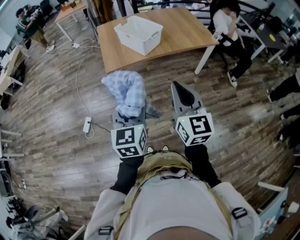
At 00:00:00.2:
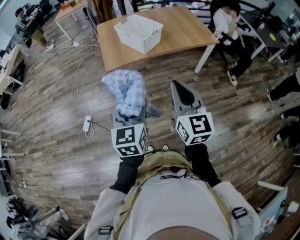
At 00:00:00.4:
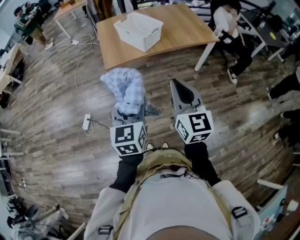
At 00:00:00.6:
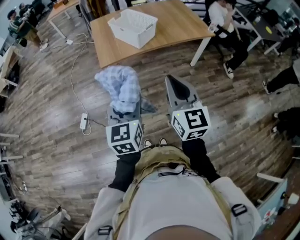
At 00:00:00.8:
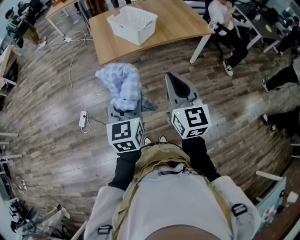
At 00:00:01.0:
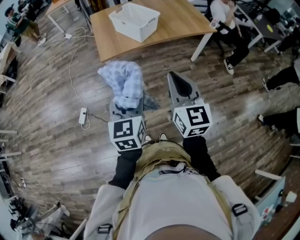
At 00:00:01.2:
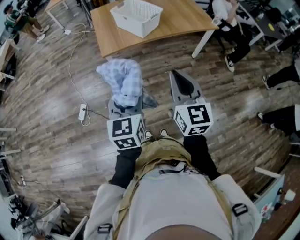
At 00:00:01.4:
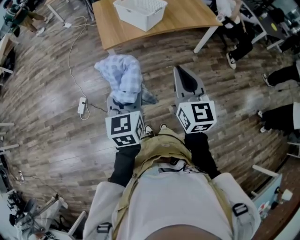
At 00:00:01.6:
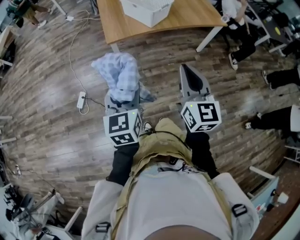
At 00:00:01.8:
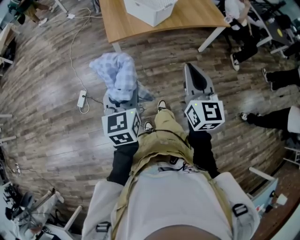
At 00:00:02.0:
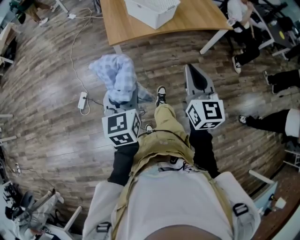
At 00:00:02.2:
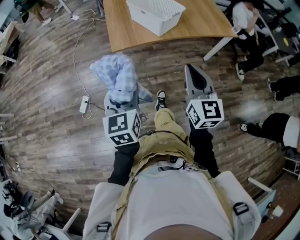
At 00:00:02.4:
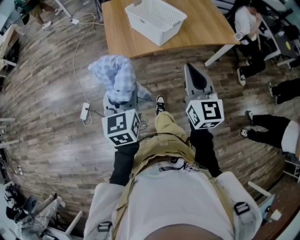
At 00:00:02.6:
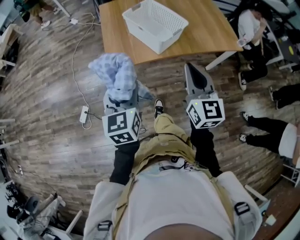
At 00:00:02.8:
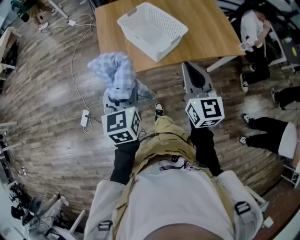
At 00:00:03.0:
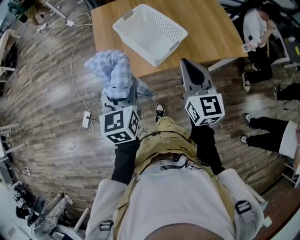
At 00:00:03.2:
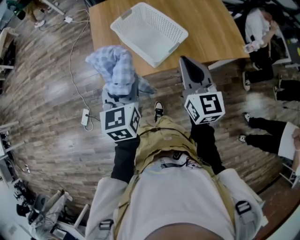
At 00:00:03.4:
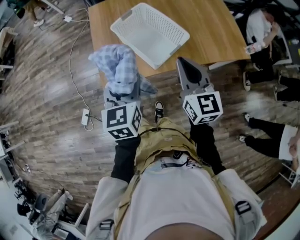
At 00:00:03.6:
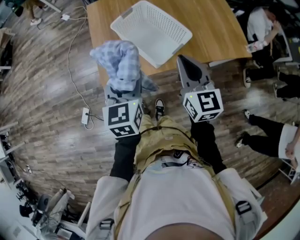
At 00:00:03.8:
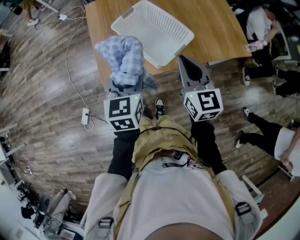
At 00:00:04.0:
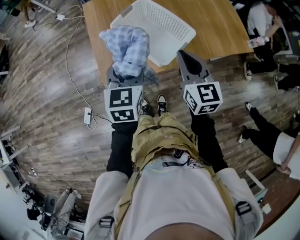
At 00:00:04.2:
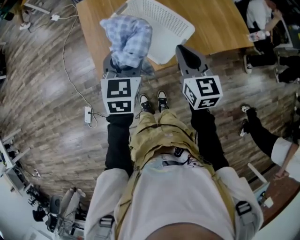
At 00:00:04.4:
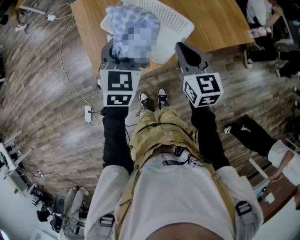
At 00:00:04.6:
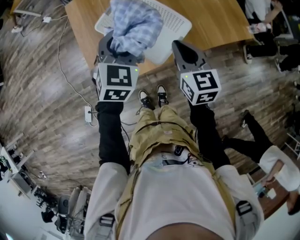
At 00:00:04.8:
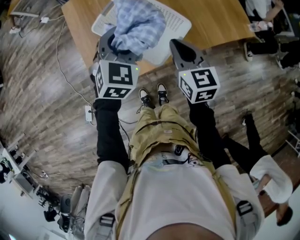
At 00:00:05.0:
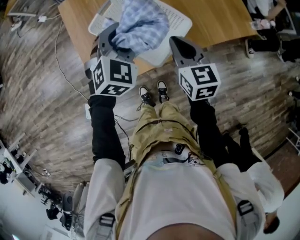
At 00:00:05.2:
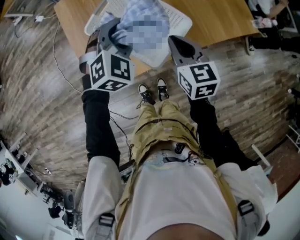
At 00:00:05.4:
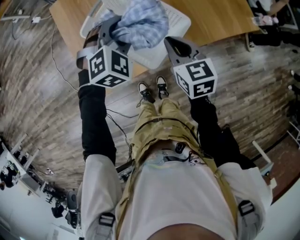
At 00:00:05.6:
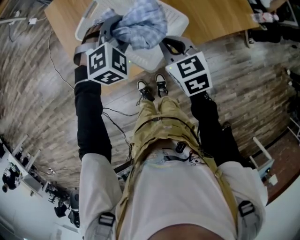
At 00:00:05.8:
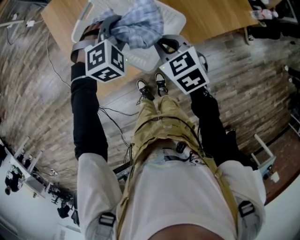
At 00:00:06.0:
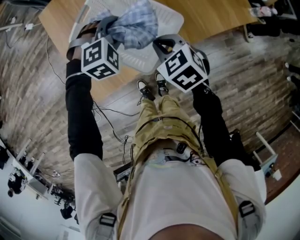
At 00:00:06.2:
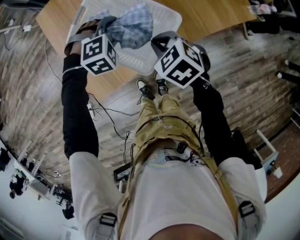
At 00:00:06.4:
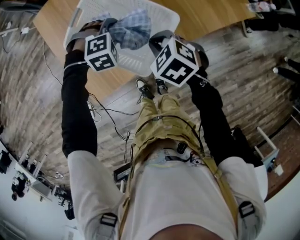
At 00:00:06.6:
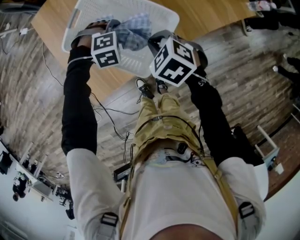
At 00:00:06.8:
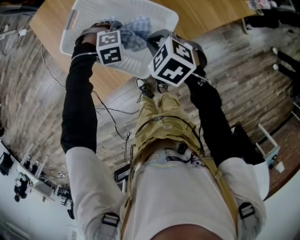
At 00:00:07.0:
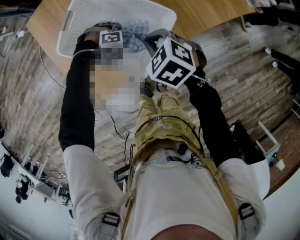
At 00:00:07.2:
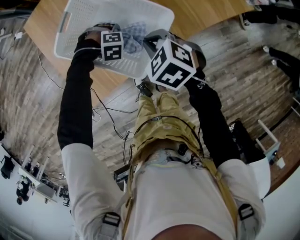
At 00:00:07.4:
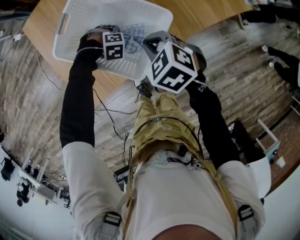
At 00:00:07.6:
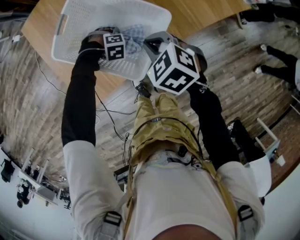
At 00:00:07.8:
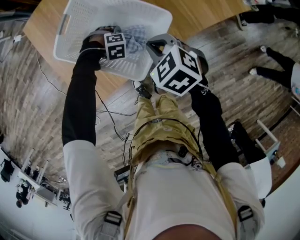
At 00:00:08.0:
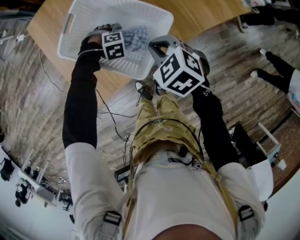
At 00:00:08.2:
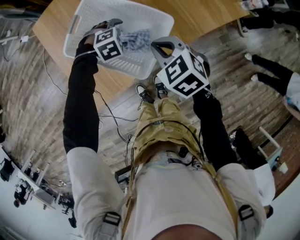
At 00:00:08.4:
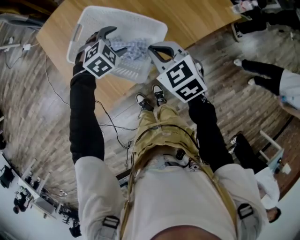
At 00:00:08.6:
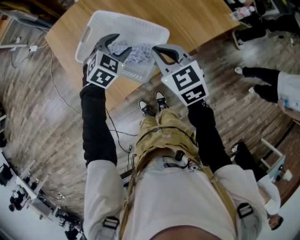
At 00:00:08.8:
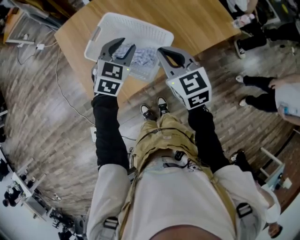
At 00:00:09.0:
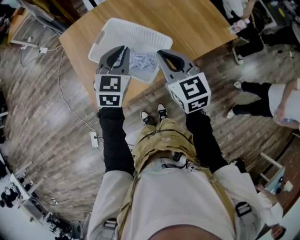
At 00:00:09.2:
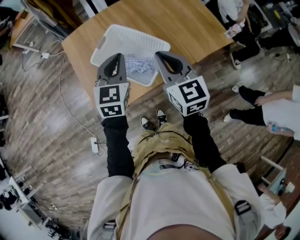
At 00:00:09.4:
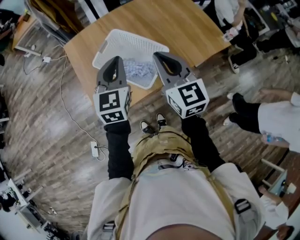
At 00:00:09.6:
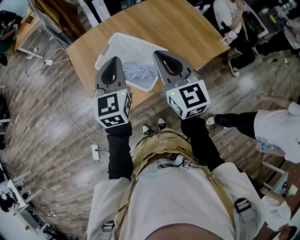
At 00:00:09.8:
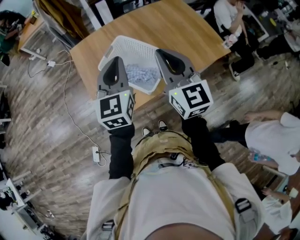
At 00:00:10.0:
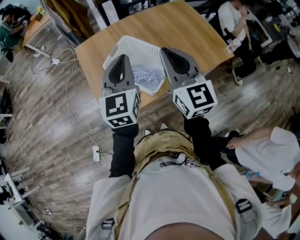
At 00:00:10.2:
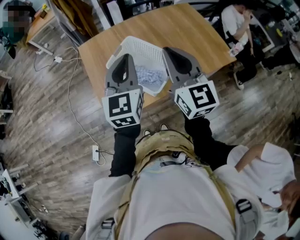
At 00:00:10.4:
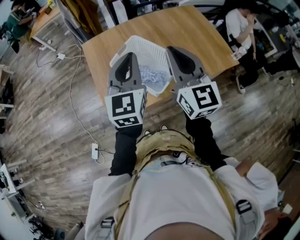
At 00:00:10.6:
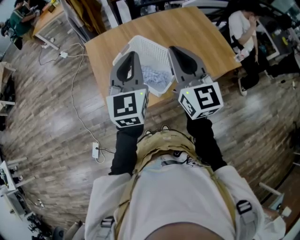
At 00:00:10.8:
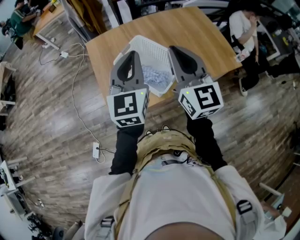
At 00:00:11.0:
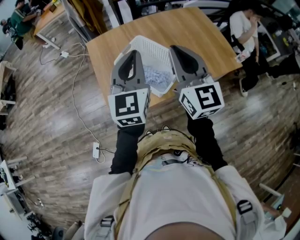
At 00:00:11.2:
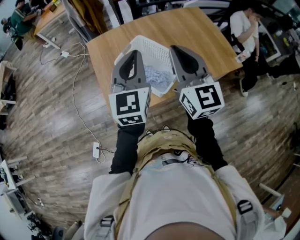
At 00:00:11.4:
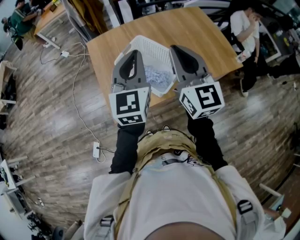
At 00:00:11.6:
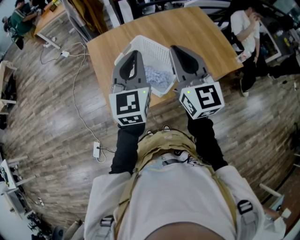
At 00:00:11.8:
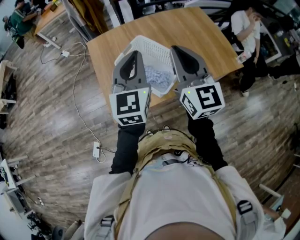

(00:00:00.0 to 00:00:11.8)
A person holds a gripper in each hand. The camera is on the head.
00:00:00.0 - 00:00:01.4: The right gripper moves roughly 5 cm; the left gripper is displaced to the left by some 5 cm.
00:00:01.4 - 00:00:03.0: The grippers both shift forward by roughly 40 cm.
00:00:03.0 - 00:00:04.4: The right gripper is displaced forward and downward by approximately 15 cm; the left gripper travels forward by approximately 20 cm, and turns by roughly 30 degrees.
00:00:04.4 - 00:00:06.0: The left gripper is displaced downward and forward by approximately 20 cm, and rotates around the line of its fingers by some 50 degrees, clockwise from behind. Meanwhile the right gripper is displaced downward by some 10 cm, and angles its fingers downward, by approximately 30 degrees.
00:00:06.0 - 00:00:07.4: The left gripper goes roughly 20 cm downward, and points its fingers approximately 30 degrees further downward.
00:00:07.4 - 00:00:08.8: The right gripper shifts some 15 cm upward, and angles its fingers upward, by about 30 degrees. Meanwhile the left gripper travels upward by roughly 30 cm, angles its fingers upward, by some 50 degrees, and opens and closes again.
00:00:08.8 - 00:00:10.4: The left gripper moves upward and backward, about 20 cm, angles its fingers upward, by approximately 30 degrees, and closes its fingers. Meanwhile the right gripper goes approximately 20 cm upward, and rotates about 30 degrees.
00:00:10.4 - 00:00:11.8: Both grippers stay about where they are.

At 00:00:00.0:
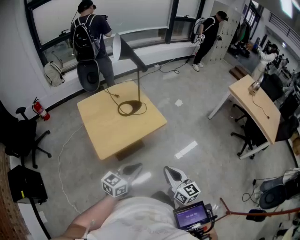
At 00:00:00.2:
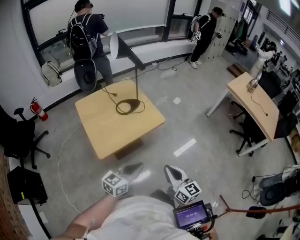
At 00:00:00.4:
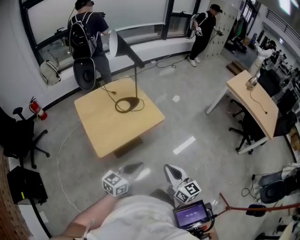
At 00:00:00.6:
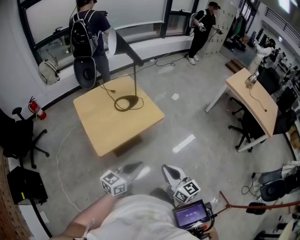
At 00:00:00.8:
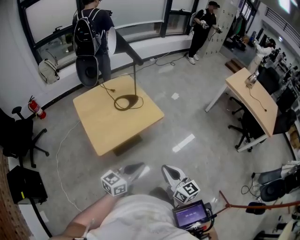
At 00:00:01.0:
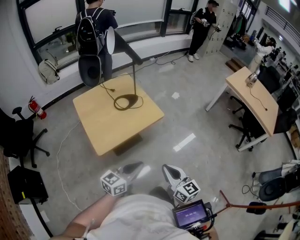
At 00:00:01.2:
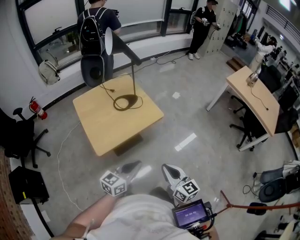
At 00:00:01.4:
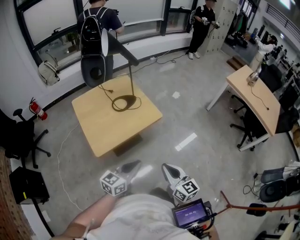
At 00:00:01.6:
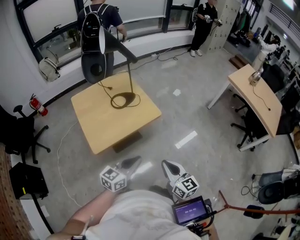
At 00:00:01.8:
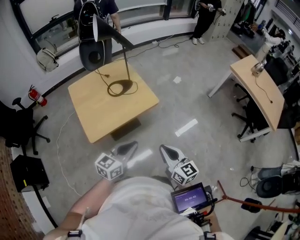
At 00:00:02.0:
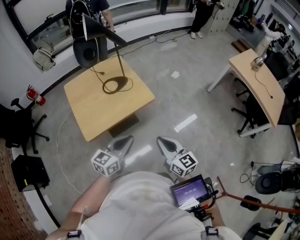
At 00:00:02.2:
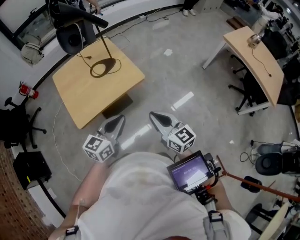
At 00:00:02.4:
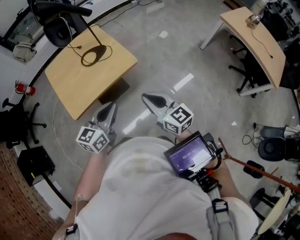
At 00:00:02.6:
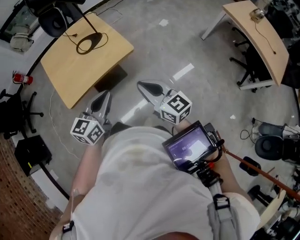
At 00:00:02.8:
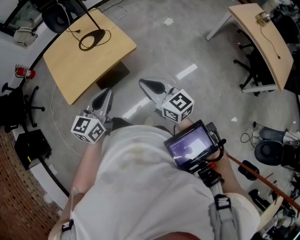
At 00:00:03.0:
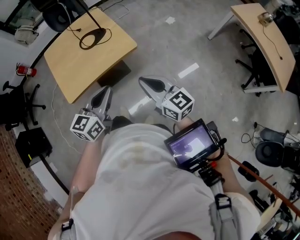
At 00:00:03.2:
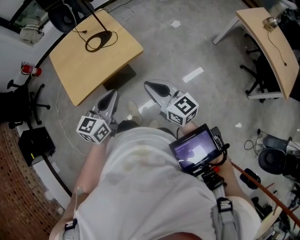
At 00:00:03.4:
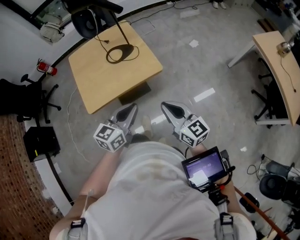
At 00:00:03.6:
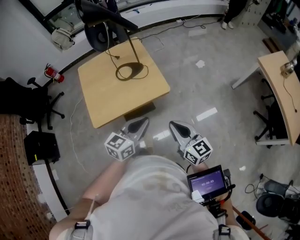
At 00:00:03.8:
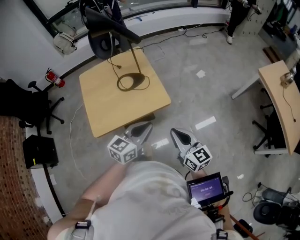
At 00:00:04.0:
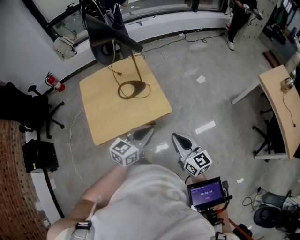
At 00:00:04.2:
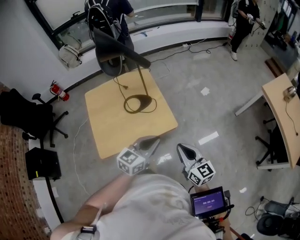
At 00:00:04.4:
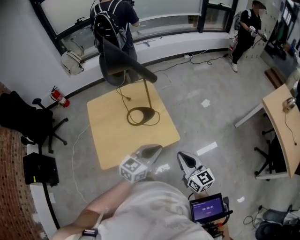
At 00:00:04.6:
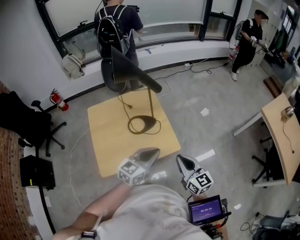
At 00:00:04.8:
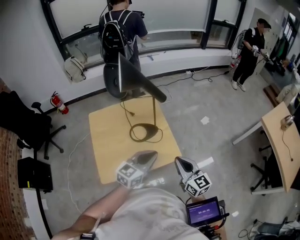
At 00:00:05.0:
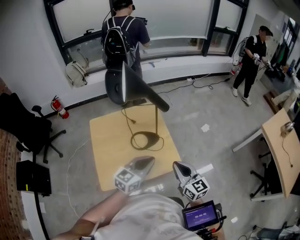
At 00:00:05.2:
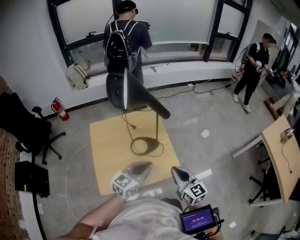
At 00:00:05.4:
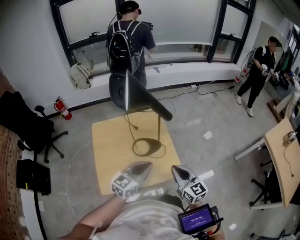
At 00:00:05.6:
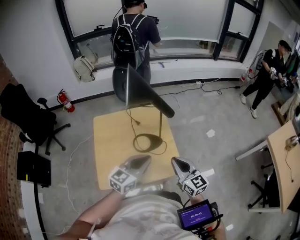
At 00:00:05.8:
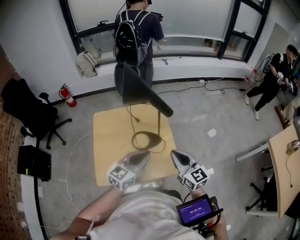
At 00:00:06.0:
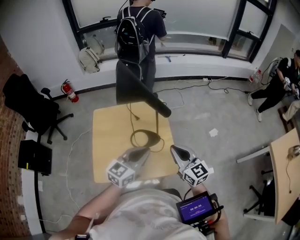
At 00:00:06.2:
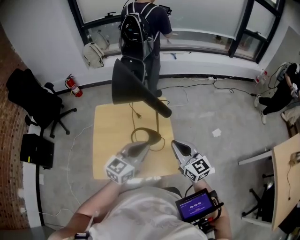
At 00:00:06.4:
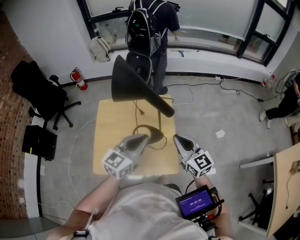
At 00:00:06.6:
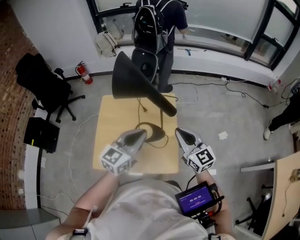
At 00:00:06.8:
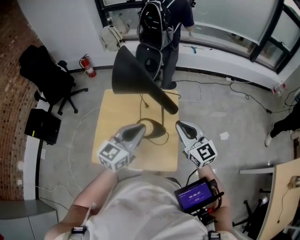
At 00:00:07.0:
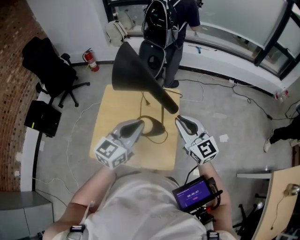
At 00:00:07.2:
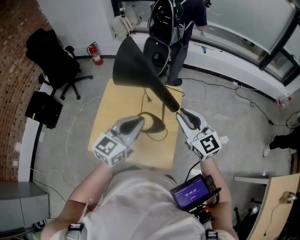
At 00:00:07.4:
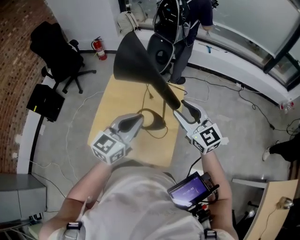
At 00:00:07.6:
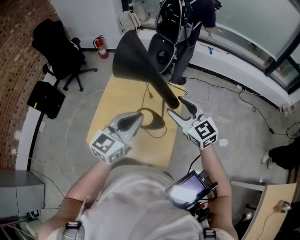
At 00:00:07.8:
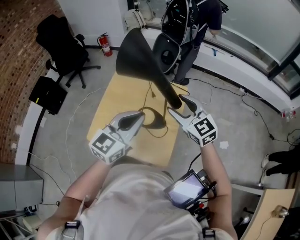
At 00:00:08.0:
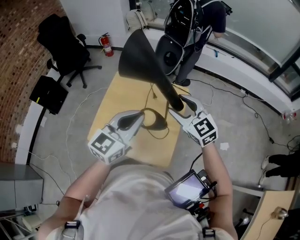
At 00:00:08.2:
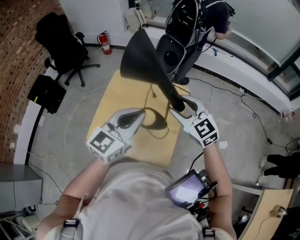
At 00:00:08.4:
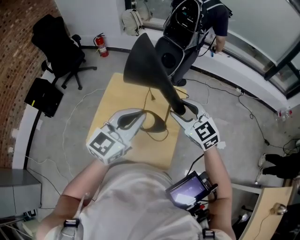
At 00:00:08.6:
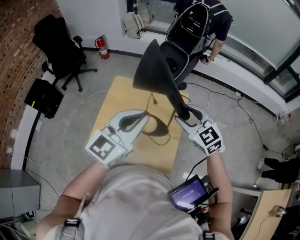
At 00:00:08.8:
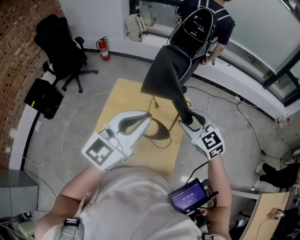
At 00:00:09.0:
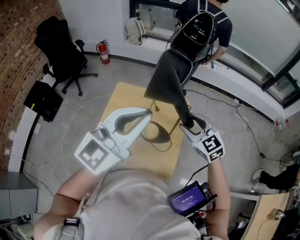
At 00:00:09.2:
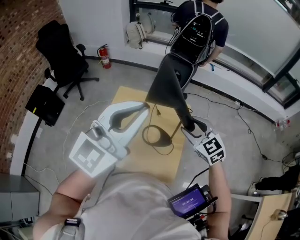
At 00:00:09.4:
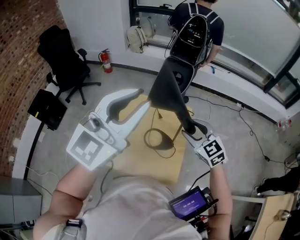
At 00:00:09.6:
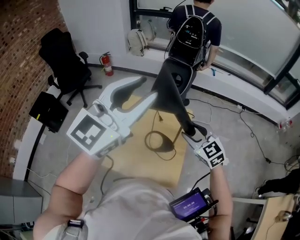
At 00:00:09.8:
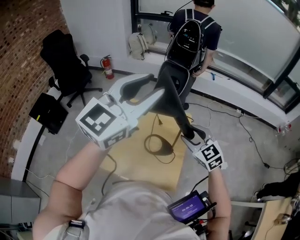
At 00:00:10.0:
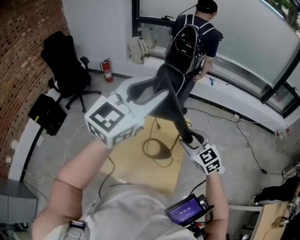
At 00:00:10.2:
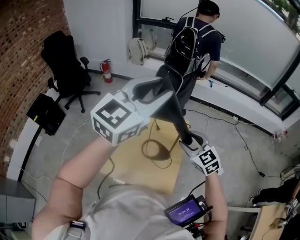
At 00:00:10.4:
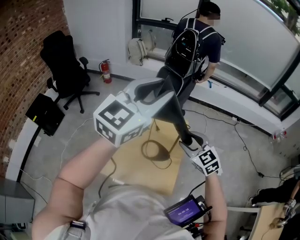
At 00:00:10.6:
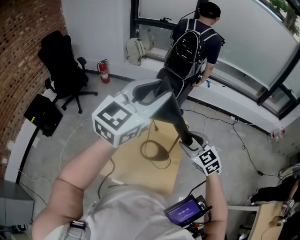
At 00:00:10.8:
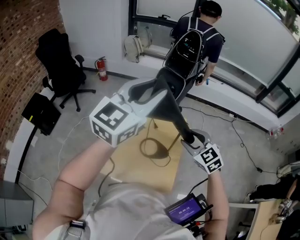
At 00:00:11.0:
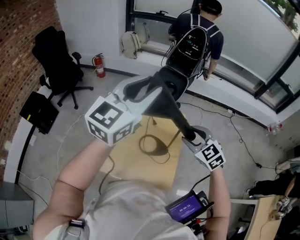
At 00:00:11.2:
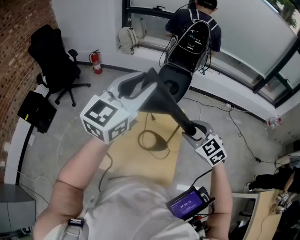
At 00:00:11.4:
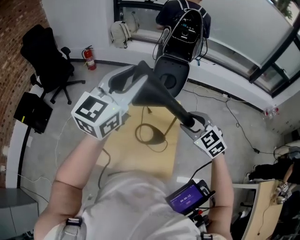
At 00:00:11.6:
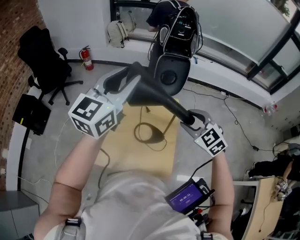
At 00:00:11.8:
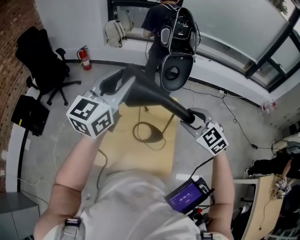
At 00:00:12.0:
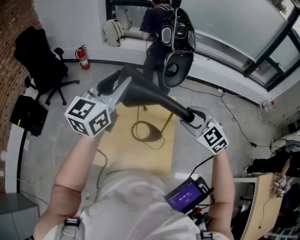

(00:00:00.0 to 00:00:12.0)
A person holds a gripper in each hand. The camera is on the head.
00:00:00.0 - 00:00:01.6: The grippers make only small movements.
00:00:01.6 - 00:00:03.0: Both grippers move forward and to the right, about 10 cm.
00:00:03.0 - 00:00:04.4: The two grippers go about 15 cm forward.
00:00:04.4 - 00:00:06.0: The right gripper shifts about 20 cm forward. Meanwhile the left gripper is displaced forward and to the left by roughly 15 cm.
00:00:06.0 - 00:00:07.6: The right gripper ends up about 15 cm from where it was, swivels approximately 30 degrees, and opens its fingers; the left gripper heads upward, covering roughly 5 cm, and rotates roughly 30 degrees.
00:00:07.6 - 00:00:09.0: The left gripper heads upward, covering approximately 15 cm.
00:00:09.0 - 00:00:10.4: The left gripper shifts roughly 10 cm forward and upward, and opens its fingers.
00:00:10.4 - 00:00:12.0: The left gripper is displaced to the left and downward by roughly 10 cm.
